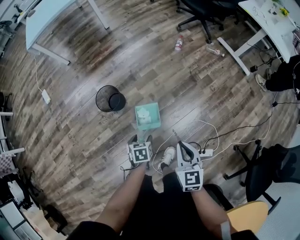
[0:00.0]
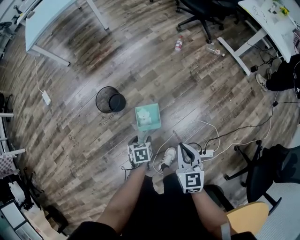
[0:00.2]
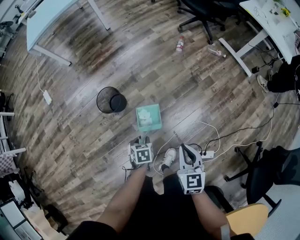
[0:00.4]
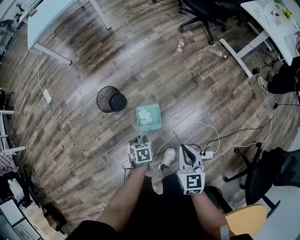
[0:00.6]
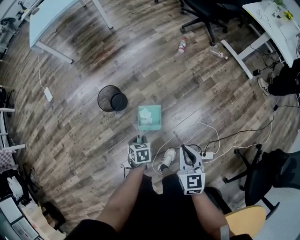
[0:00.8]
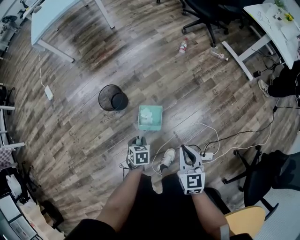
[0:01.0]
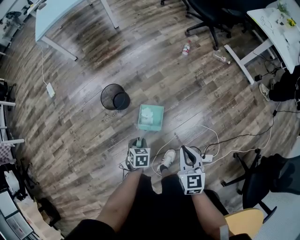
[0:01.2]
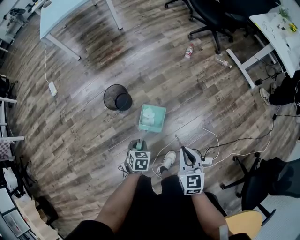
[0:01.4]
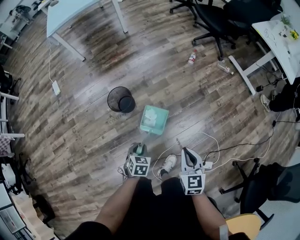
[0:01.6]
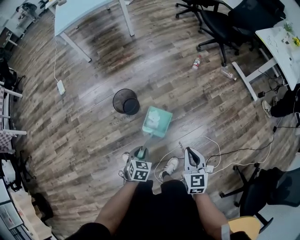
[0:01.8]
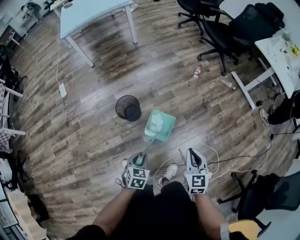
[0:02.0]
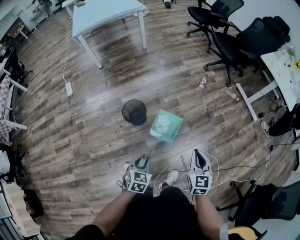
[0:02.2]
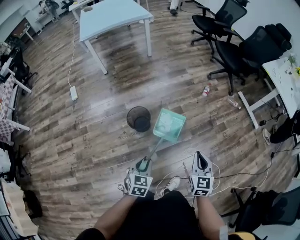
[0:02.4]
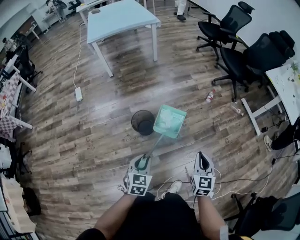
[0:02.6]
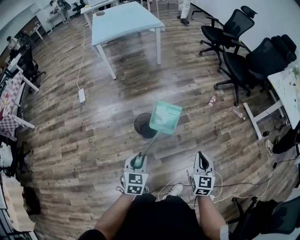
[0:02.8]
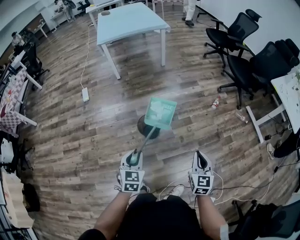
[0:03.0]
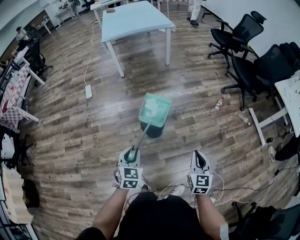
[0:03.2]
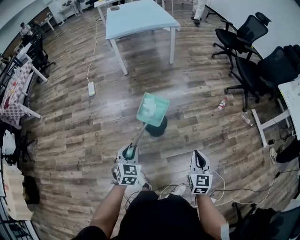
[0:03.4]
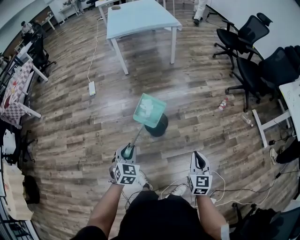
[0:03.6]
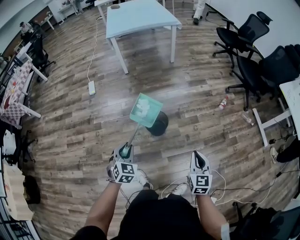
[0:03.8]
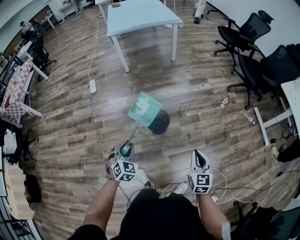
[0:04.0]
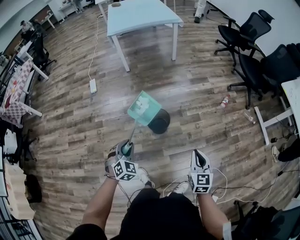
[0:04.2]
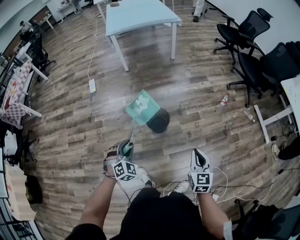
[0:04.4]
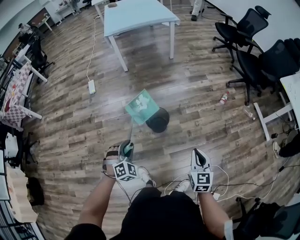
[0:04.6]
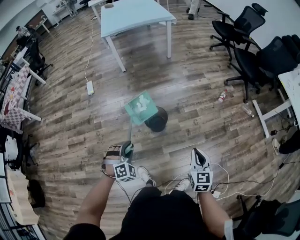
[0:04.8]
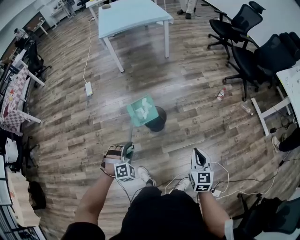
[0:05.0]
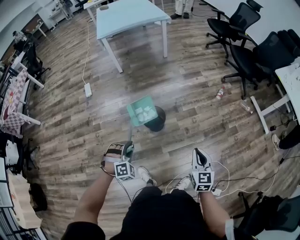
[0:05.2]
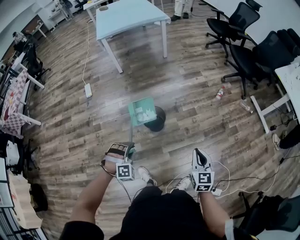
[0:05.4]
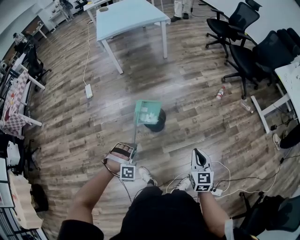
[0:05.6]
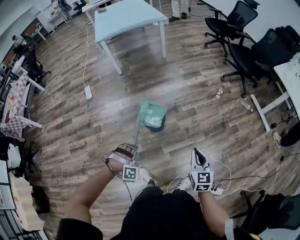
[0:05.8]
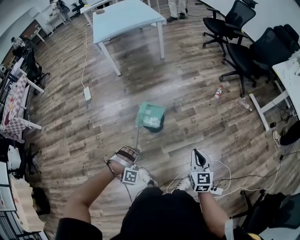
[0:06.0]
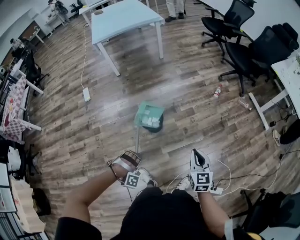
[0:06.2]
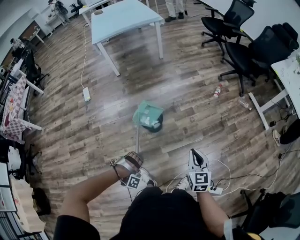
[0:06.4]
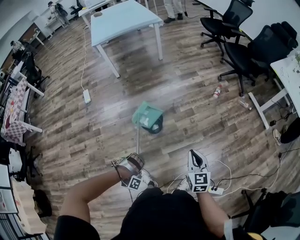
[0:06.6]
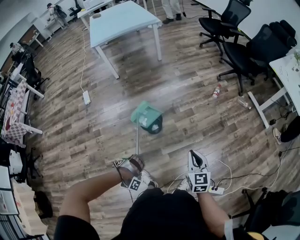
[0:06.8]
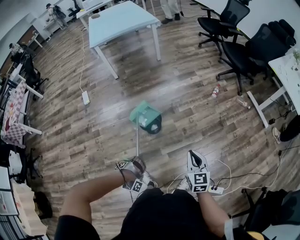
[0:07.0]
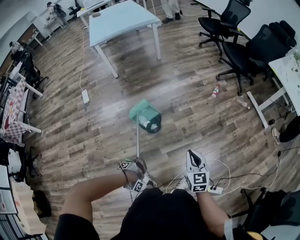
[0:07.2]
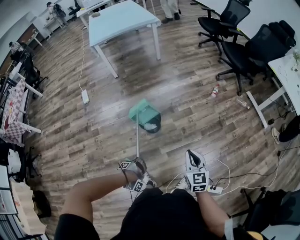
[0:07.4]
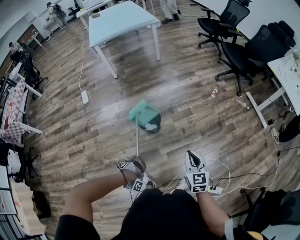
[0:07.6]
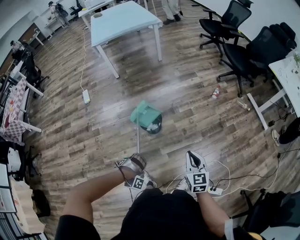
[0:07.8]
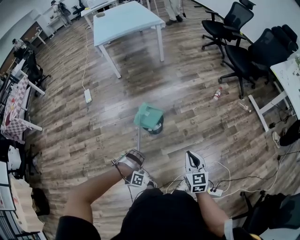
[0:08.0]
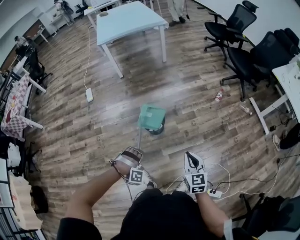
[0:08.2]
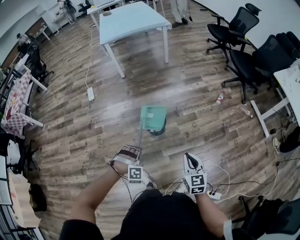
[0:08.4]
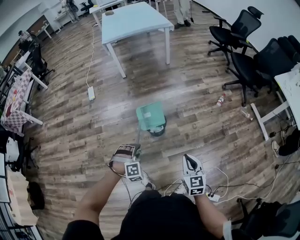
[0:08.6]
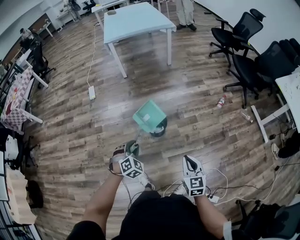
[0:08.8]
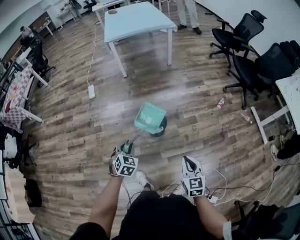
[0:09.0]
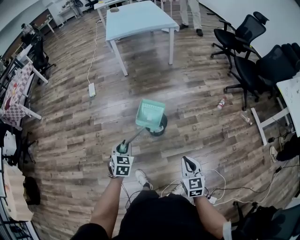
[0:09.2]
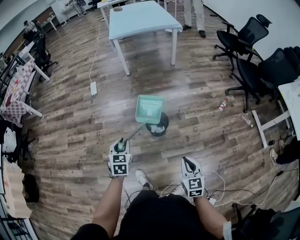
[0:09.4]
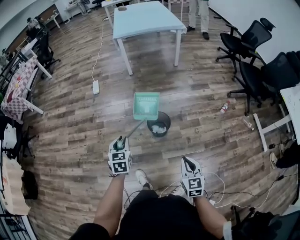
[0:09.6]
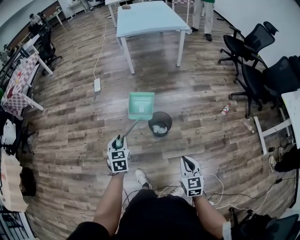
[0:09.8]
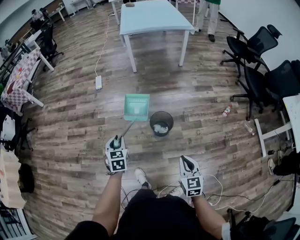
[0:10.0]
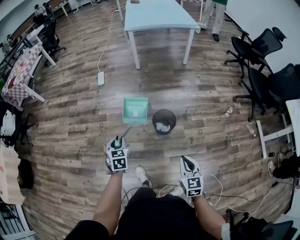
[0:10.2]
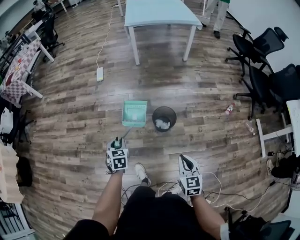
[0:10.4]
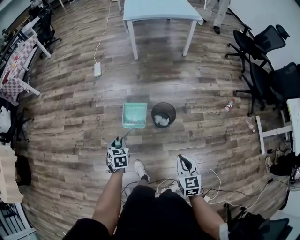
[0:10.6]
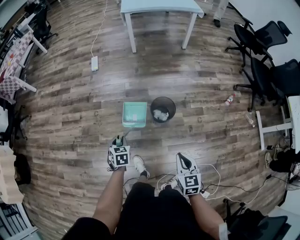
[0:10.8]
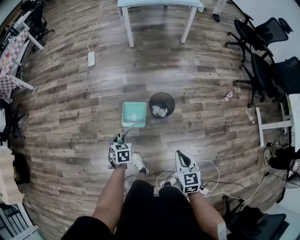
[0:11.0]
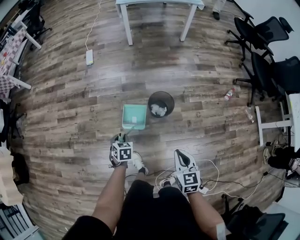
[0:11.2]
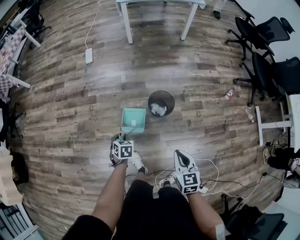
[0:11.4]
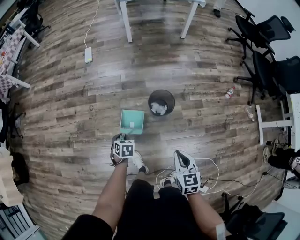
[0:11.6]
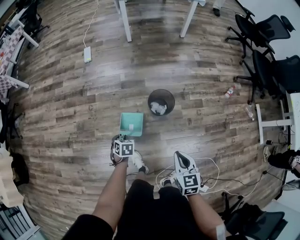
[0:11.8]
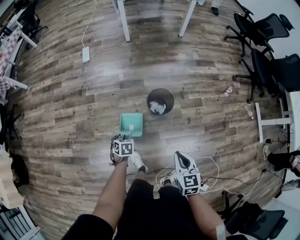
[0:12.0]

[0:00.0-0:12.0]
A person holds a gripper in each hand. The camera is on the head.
0:00.0 to 0:01.6: The left gripper moves about 10 cm, and closes.
0:01.6 to 0:03.0: The left gripper is displaced upward and to the left by roughly 30 cm, and rotates roughly 30 degrees; the right gripper is displaced to the left, upward and forward by roughly 15 cm.
0:03.0 to 0:04.4: The right gripper is displaced to the left by some 5 cm, while the left gripper heads to the left and downward, covering some 10 cm, and turns by some 40 degrees.
0:04.4 to 0:06.0: The left gripper heads to the right, downward and backward, covering some 10 cm, and rotates around the line of its fingers by roughly 60 degrees, clockwise from behind. Meanwhile the right gripper changes place by about 5 cm.
0:06.0 to 0:07.6: The left gripper travels downward and backward by some 10 cm, and twists roughly 40 degrees clockwise, seen from behind.
0:07.6 to 0:09.0: The right gripper moves to the left, roughly 5 cm; the left gripper shifts some 15 cm forward and upward, and rotates around the line of its fingers by about 130 degrees, counterclockwise from behind.
0:09.0 to 0:10.4: The left gripper shifts roughly 15 cm to the left, and changes its angle by roughly 40 degrees. The right gripper is displaced to the left by approximately 10 cm.
0:10.4 to 0:12.0: The right gripper travels downward by about 5 cm. The left gripper moves downward, approximately 20 cm, and turns by roughly 30 degrees.

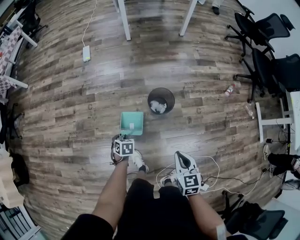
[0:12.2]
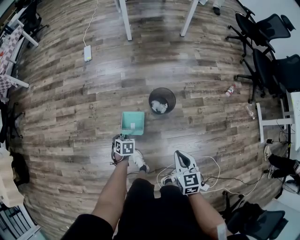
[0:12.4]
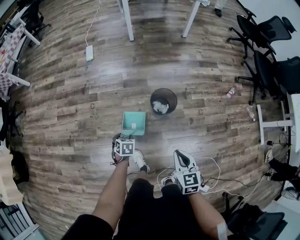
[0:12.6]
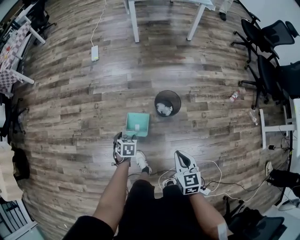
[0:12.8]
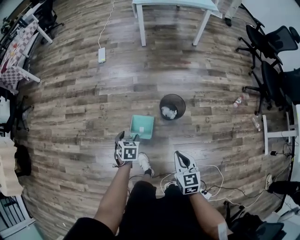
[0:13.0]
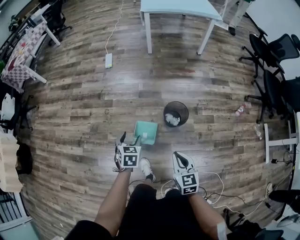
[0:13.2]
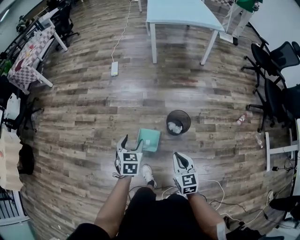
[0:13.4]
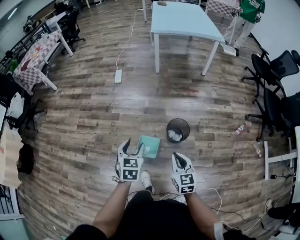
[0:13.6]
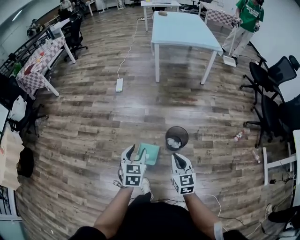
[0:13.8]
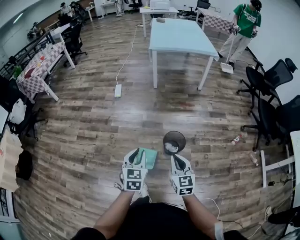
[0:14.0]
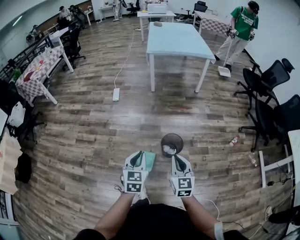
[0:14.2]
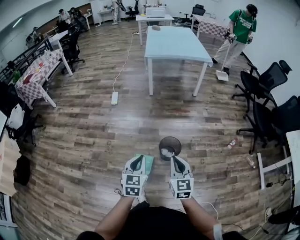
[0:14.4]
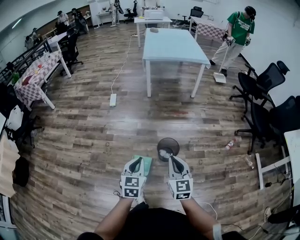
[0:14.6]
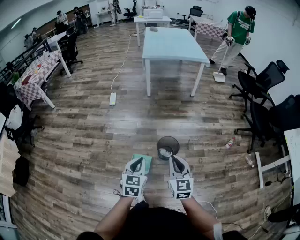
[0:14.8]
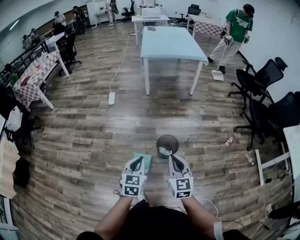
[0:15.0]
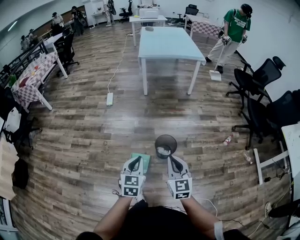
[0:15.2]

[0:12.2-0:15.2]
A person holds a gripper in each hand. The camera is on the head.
0:12.2 to 0:13.8: The left gripper moves upward, about 30 cm, tips its fingers upward by about 40 degrees, and opens its fingers. Meanwhile the right gripper goes some 15 cm upward, to the left and forward, and changes its angle by some 20 degrees.
0:13.8 to 0:15.2: The right gripper is displaced upward by some 10 cm, while the left gripper shifts roughly 10 cm to the right and backward, and closes.

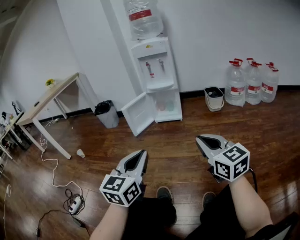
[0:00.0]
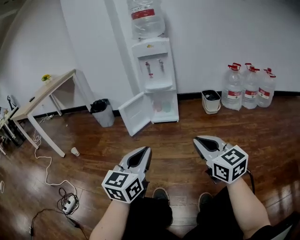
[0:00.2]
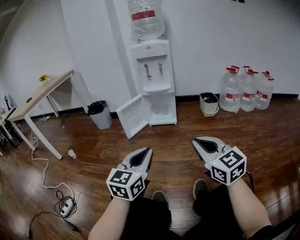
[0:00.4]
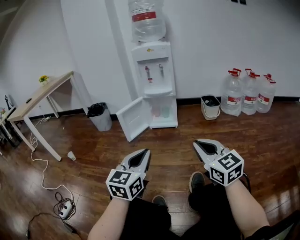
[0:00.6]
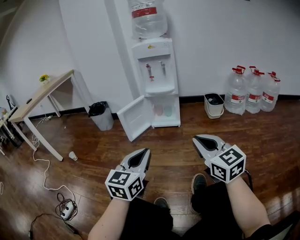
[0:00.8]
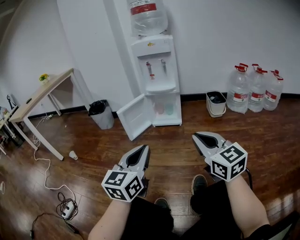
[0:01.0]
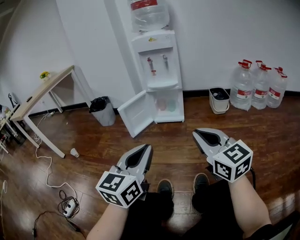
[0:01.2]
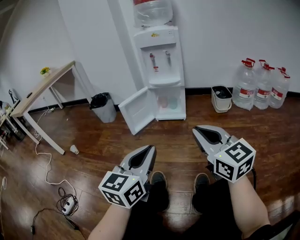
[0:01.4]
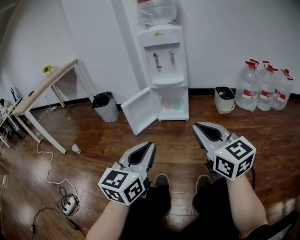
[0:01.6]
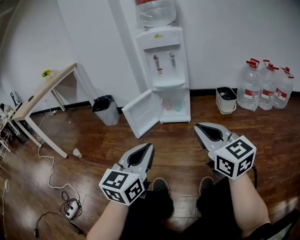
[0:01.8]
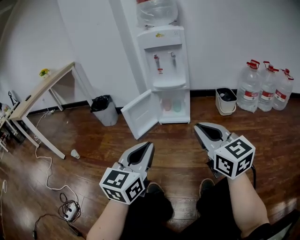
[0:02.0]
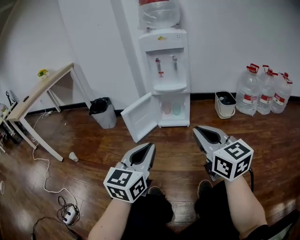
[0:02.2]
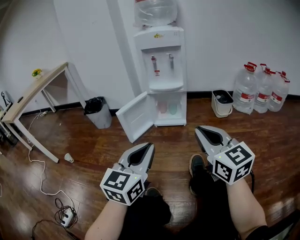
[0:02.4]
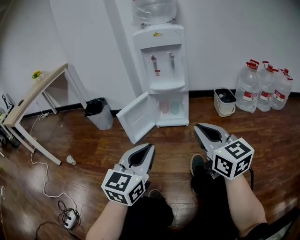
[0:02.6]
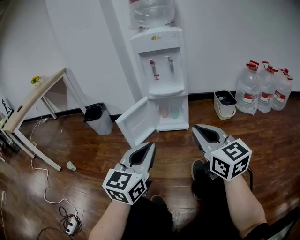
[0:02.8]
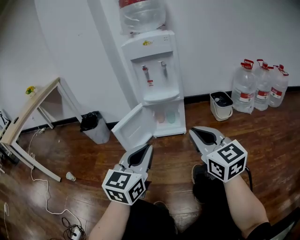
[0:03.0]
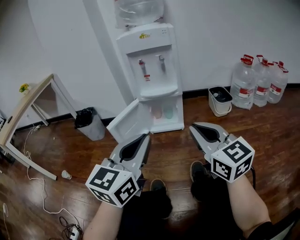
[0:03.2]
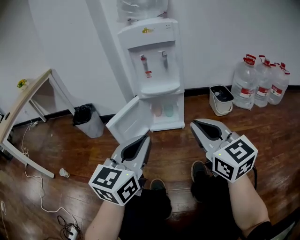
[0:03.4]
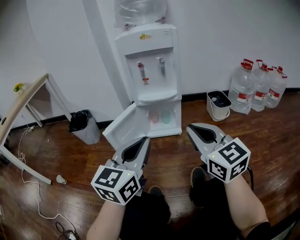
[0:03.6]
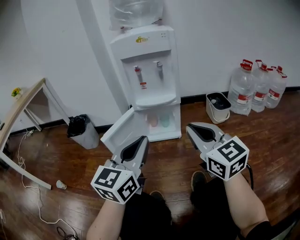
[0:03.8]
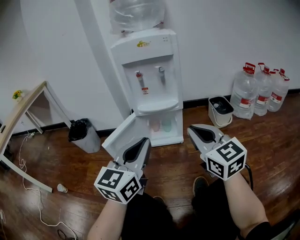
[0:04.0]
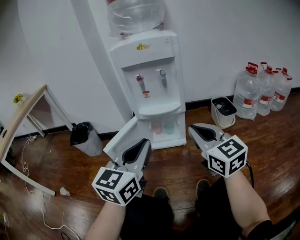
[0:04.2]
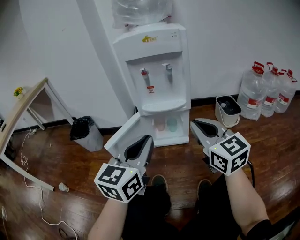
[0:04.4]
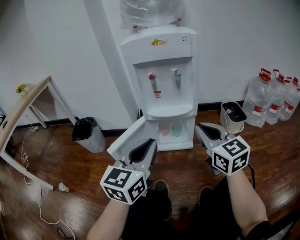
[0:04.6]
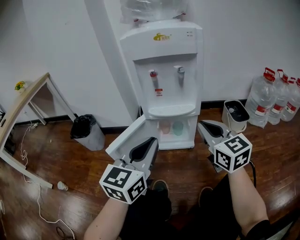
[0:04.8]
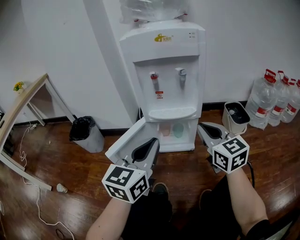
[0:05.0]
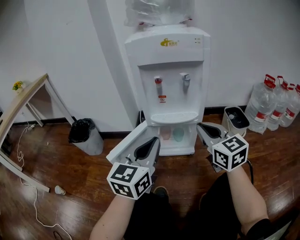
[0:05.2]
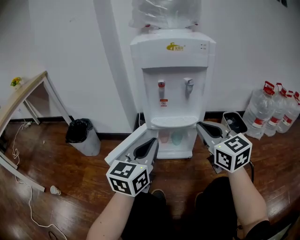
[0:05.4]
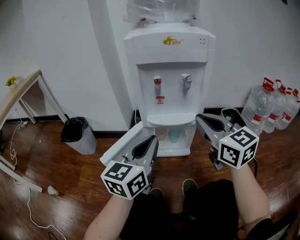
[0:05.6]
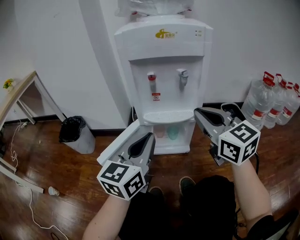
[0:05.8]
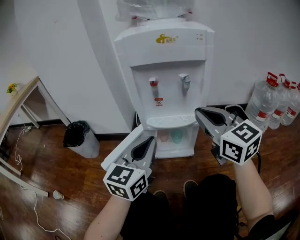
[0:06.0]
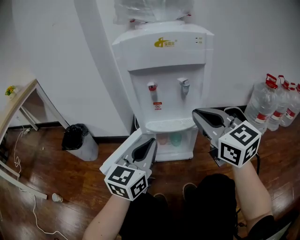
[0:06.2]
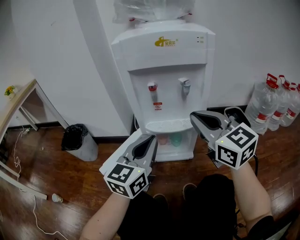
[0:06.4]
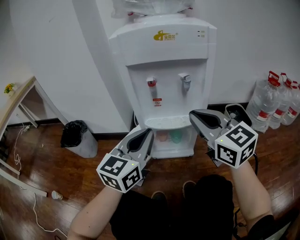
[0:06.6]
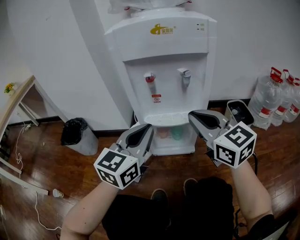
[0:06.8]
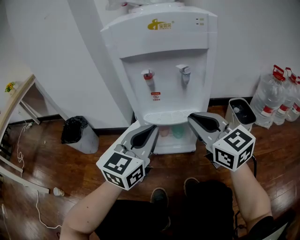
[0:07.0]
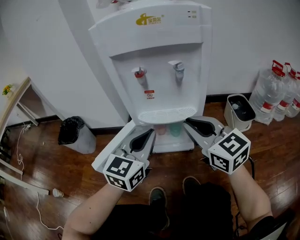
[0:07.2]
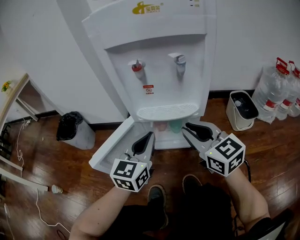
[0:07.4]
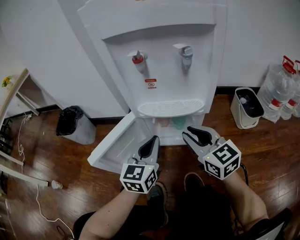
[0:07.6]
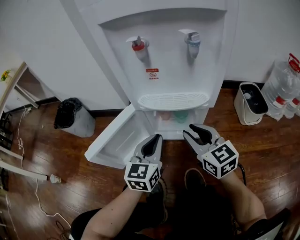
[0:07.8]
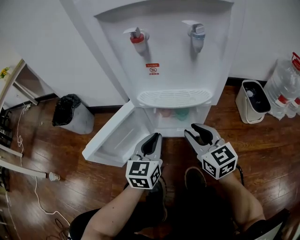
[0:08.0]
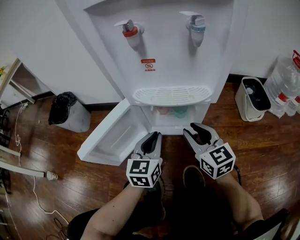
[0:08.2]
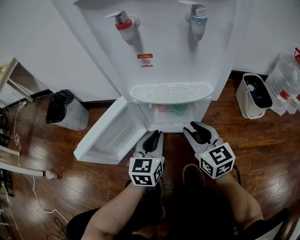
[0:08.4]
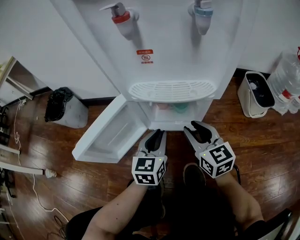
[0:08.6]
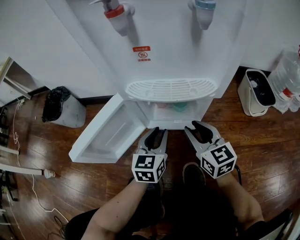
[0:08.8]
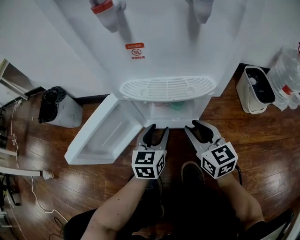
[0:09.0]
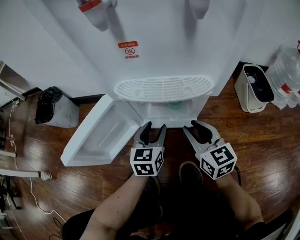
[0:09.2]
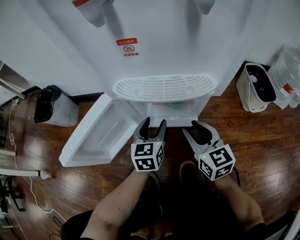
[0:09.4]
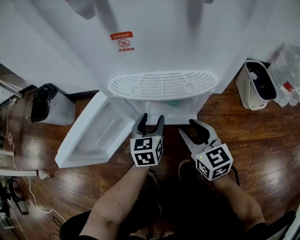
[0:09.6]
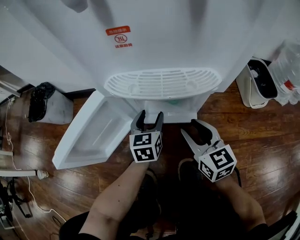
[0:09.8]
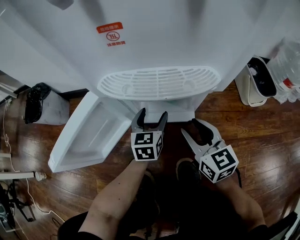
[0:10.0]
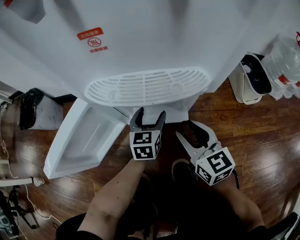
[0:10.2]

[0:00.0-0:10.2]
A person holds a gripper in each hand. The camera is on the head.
0:00.0 to 0:01.4: Both grippers move forward, roughly 10 cm.
0:01.4 to 0:03.0: The grippers both shift forward by about 20 cm.
0:03.0 to 0:04.4: The grippers both shift forward by some 20 cm.
0:04.4 to 0:05.8: The grippers both shift forward by some 15 cm.
0:05.8 to 0:07.2: The right gripper heads downward, covering some 10 cm. The left gripper goes about 10 cm forward and downward.
0:07.2 to 0:08.8: The two grippers go about 25 cm downward. The right gripper opens its fingers. The left gripper turns by roughly 20 degrees.
0:08.8 to 0:10.2: The right gripper ends up about 5 cm from where it was, while the left gripper goes roughly 15 cm downward and forward, and opens its fingers.
